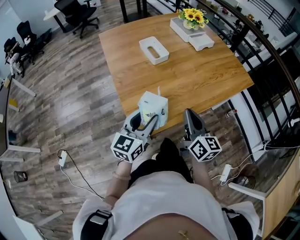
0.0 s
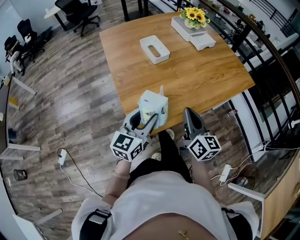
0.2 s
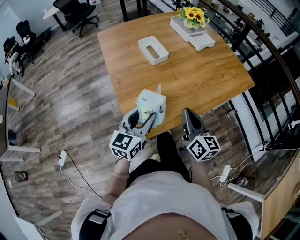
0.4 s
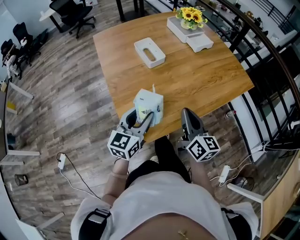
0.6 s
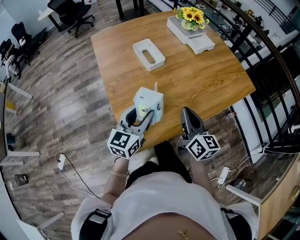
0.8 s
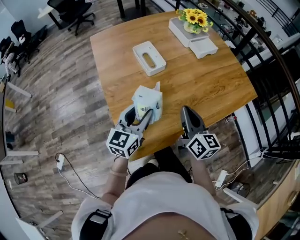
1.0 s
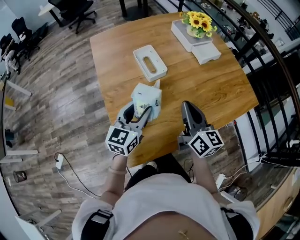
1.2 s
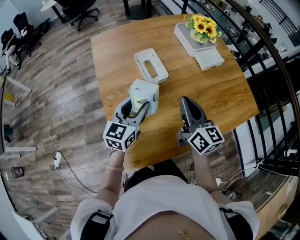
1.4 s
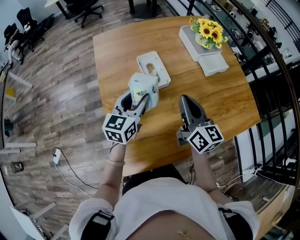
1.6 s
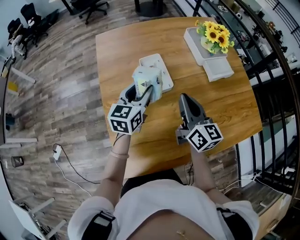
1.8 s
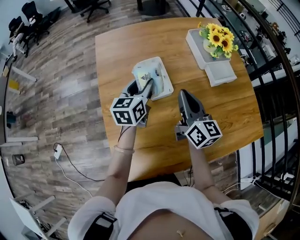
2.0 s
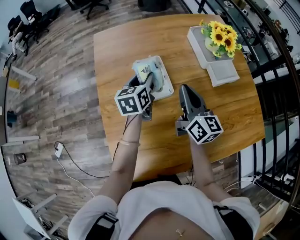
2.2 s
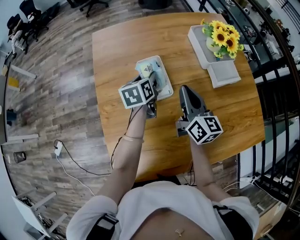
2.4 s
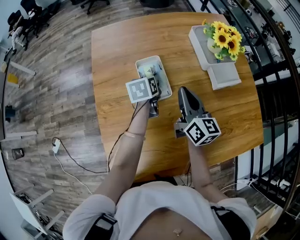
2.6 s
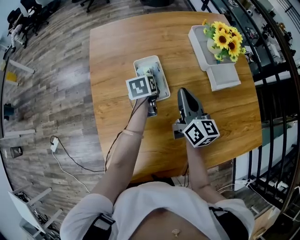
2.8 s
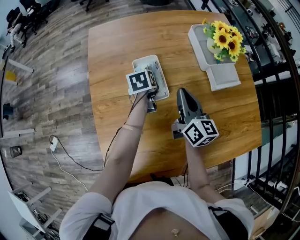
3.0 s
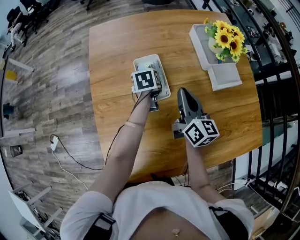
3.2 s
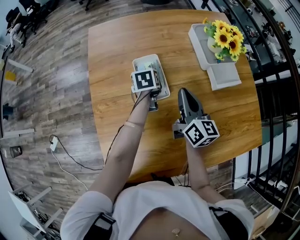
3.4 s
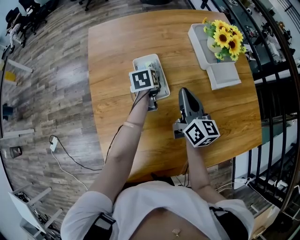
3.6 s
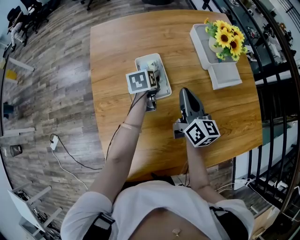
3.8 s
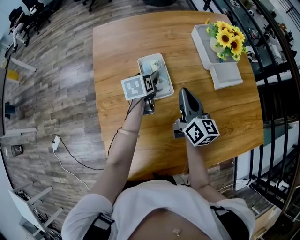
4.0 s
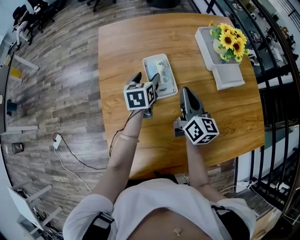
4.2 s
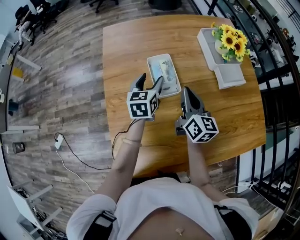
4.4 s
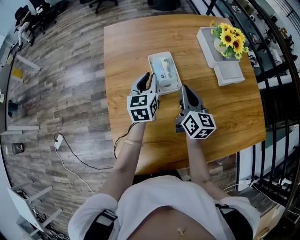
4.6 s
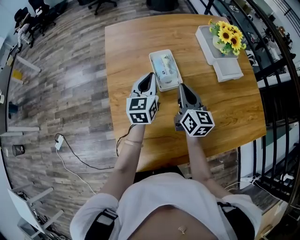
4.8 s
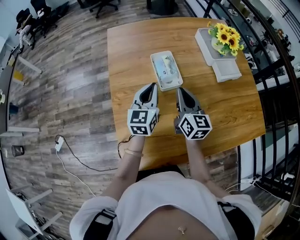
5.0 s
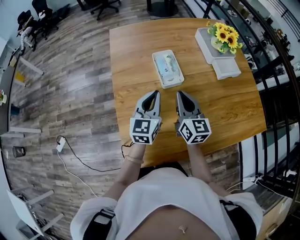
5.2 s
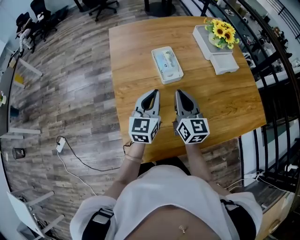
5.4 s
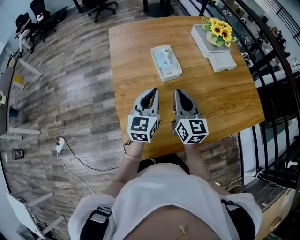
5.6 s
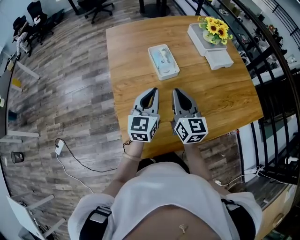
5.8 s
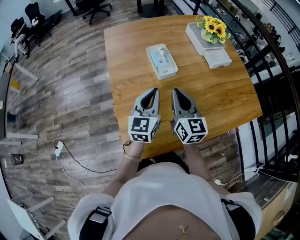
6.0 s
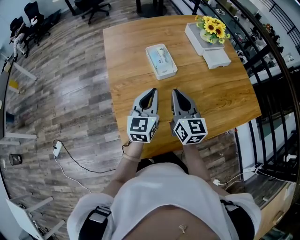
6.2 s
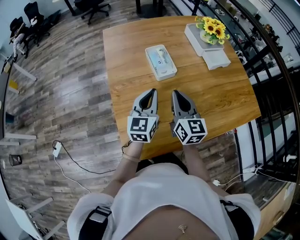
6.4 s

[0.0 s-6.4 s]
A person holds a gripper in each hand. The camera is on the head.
0.0 to 1.6 s: The grippers both shift forward by roughly 25 cm.
1.6 to 3.2 s: The left gripper shifts roughly 25 cm forward and downward, and tips its fingers downward by approximately 40 degrees; the right gripper moves forward and downward, approximately 15 cm.
3.2 to 4.8 s: The left gripper is displaced upward and backward by roughly 15 cm, angles its fingers upward, by approximately 40 degrees, and closes up. Meanwhile the right gripper moves to the left, approximately 5 cm.
4.8 to 6.4 s: Both grippers move backward, approximately 15 cm.

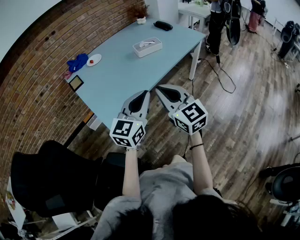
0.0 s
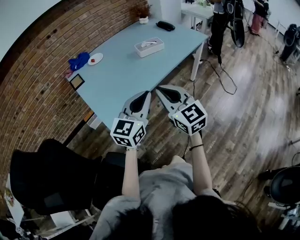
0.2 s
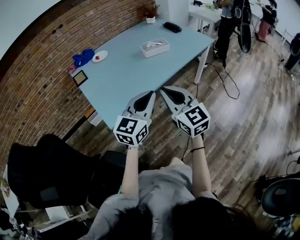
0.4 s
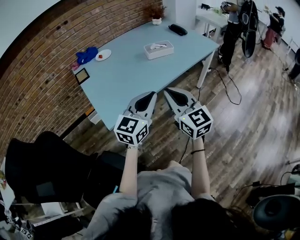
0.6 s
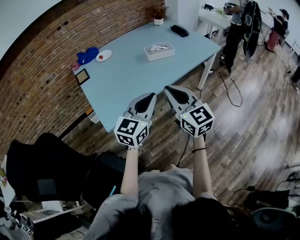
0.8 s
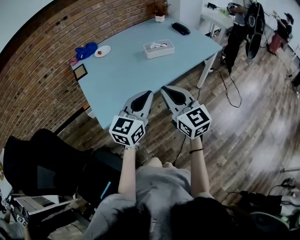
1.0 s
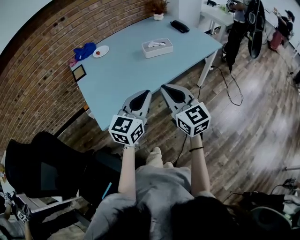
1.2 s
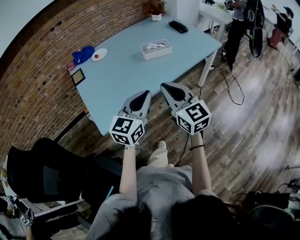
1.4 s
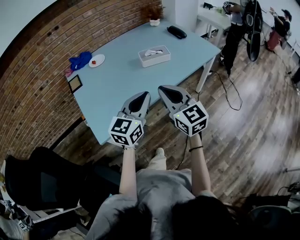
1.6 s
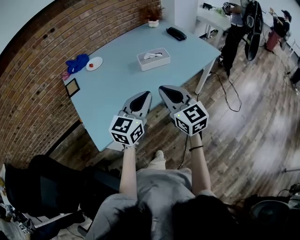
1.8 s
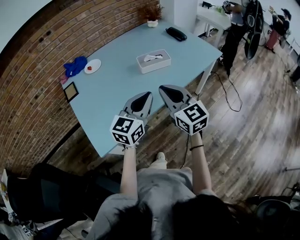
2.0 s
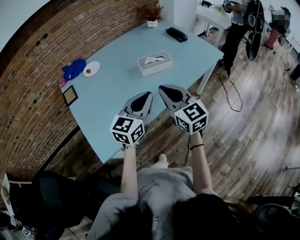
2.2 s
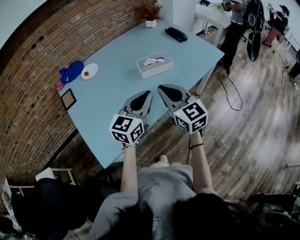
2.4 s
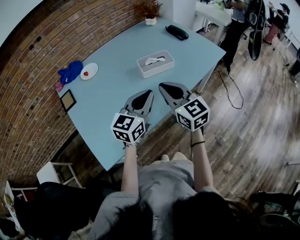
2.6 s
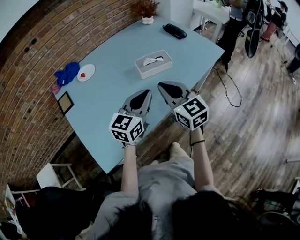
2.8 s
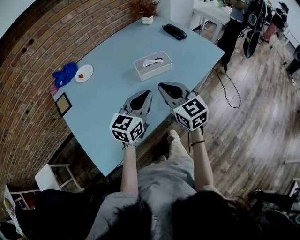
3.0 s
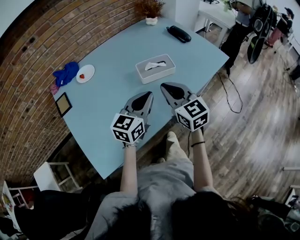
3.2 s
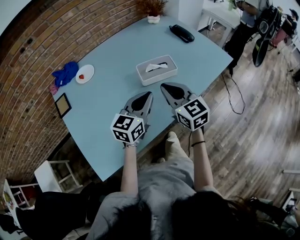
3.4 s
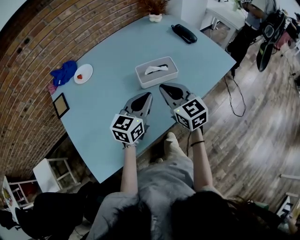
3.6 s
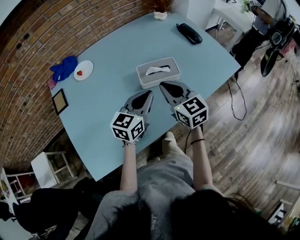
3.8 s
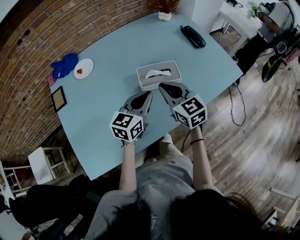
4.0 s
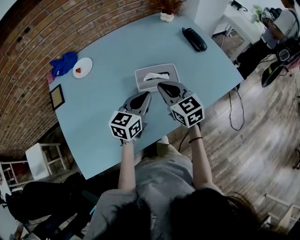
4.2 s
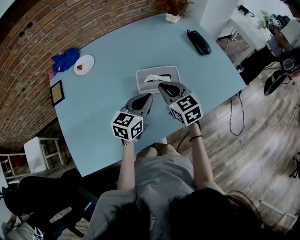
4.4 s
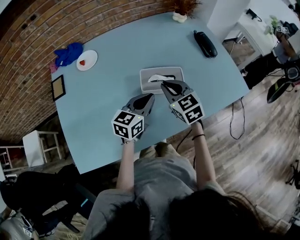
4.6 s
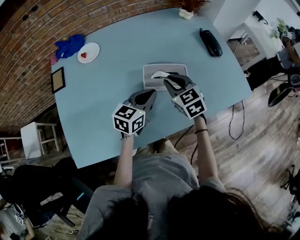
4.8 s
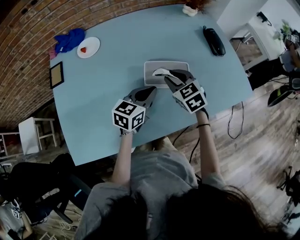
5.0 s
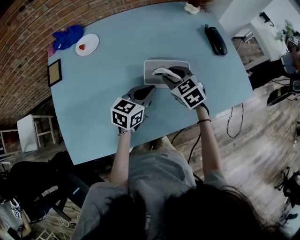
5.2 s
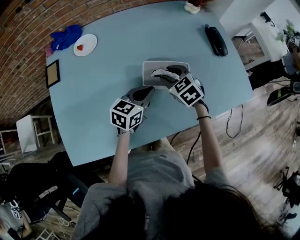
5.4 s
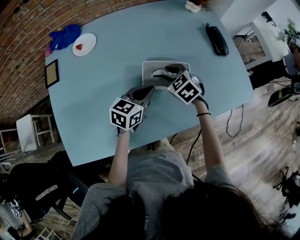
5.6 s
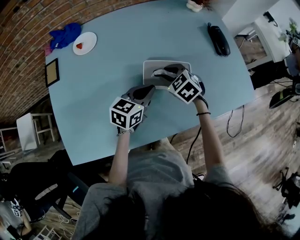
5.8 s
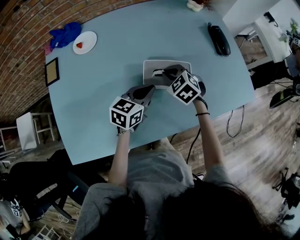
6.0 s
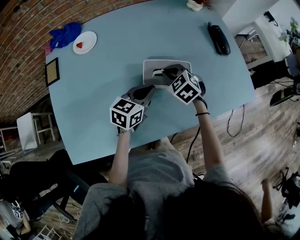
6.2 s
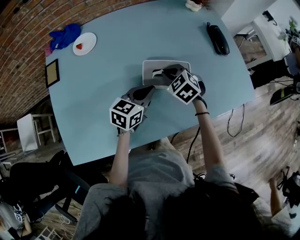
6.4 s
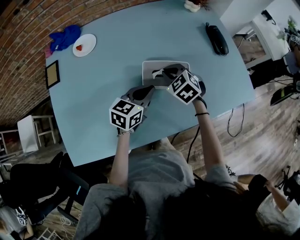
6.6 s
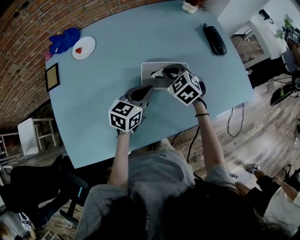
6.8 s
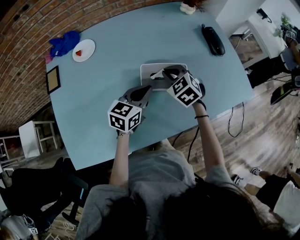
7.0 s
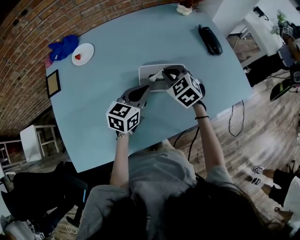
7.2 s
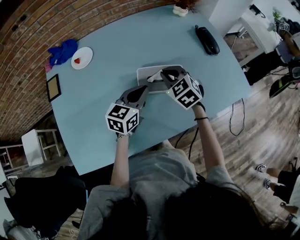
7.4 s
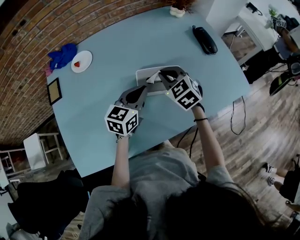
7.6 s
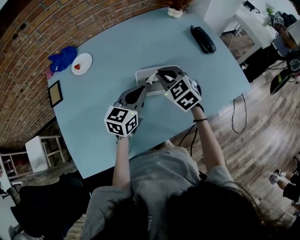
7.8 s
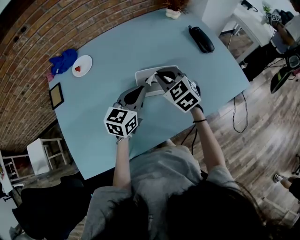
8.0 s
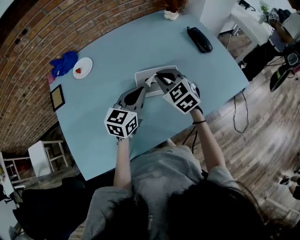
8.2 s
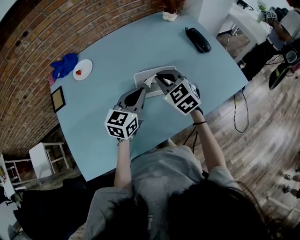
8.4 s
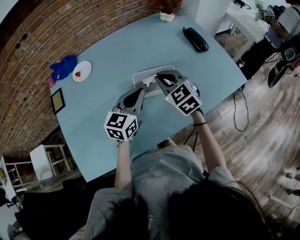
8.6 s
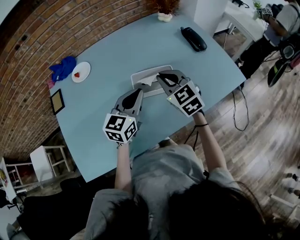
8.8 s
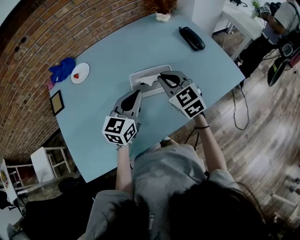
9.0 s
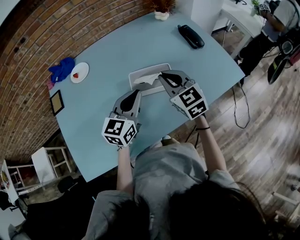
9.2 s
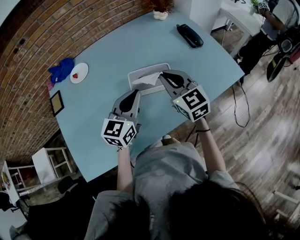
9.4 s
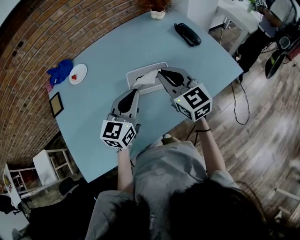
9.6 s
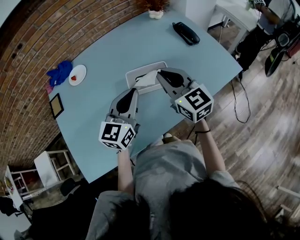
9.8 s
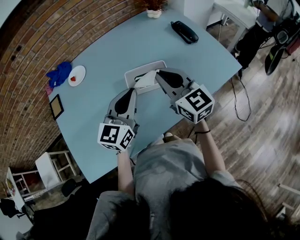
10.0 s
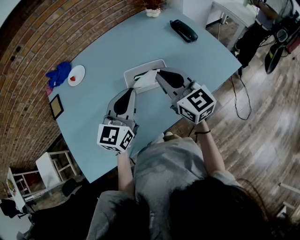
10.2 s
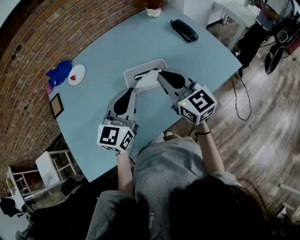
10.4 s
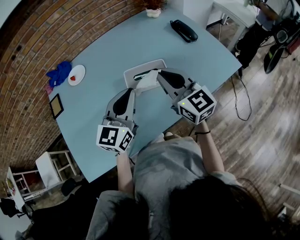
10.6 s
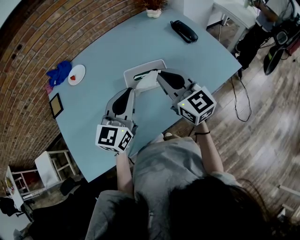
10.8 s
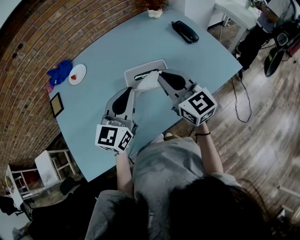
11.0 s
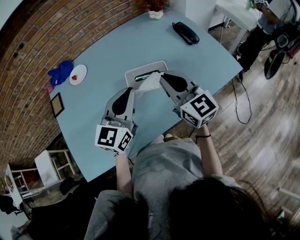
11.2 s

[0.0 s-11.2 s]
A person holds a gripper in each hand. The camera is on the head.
0.0 to 1.6 s: Both grippers move forward and to the right, about 15 cm.
1.6 to 3.2 s: The two grippers go about 25 cm forward.
3.2 to 4.8 s: Both grippers travel together forward and downward, about 20 cm. The right gripper turns by some 30 degrees.
4.8 to 6.4 s: The right gripper heads downward, covering approximately 5 cm, turns by roughly 20 degrees, and opens and closes again.
6.4 to 8.0 s: The two grippers go approximately 10 cm upward. The right gripper changes its angle by some 20 degrees.
8.0 to 9.6 s: The left gripper moves backward and upward, some 10 cm. The right gripper heads upward, backward and to the right, covering roughly 10 cm, and turns by some 30 degrees.
9.6 to 11.2 s: The grippers move only a little.

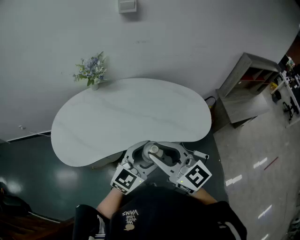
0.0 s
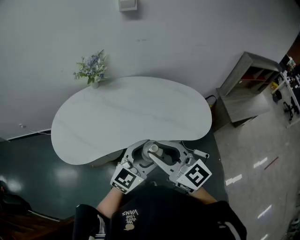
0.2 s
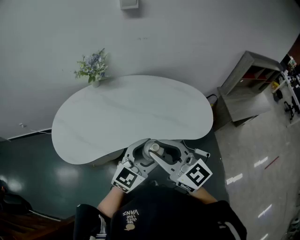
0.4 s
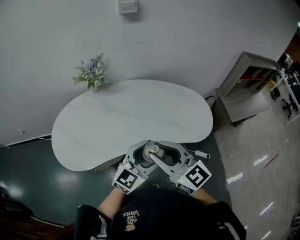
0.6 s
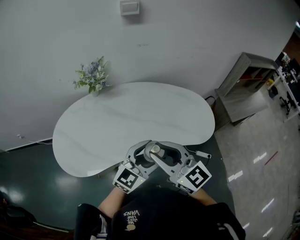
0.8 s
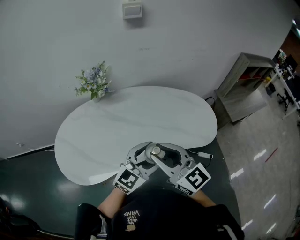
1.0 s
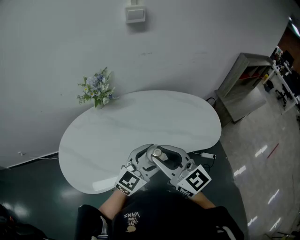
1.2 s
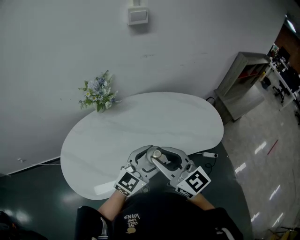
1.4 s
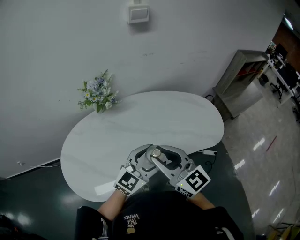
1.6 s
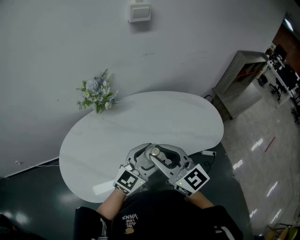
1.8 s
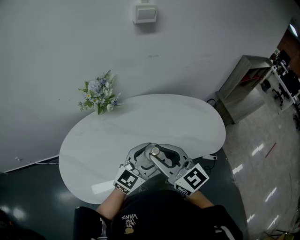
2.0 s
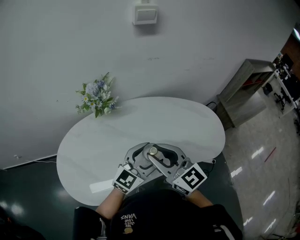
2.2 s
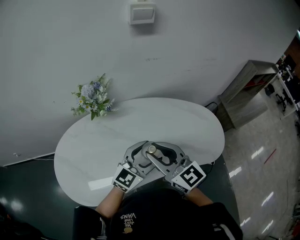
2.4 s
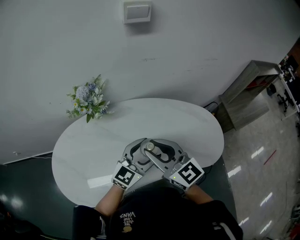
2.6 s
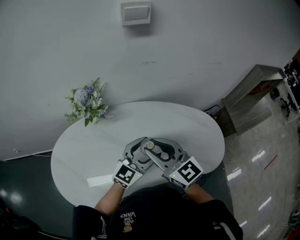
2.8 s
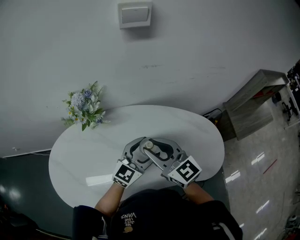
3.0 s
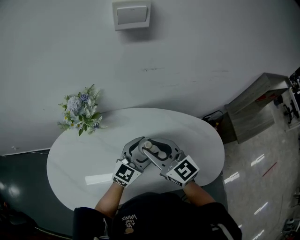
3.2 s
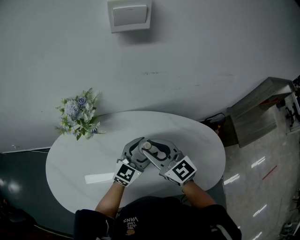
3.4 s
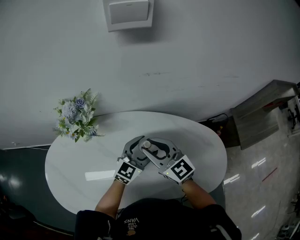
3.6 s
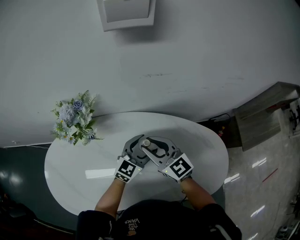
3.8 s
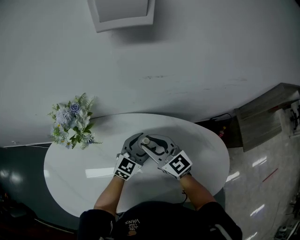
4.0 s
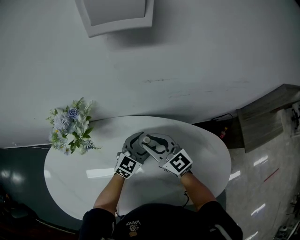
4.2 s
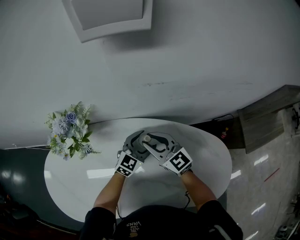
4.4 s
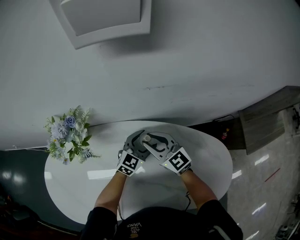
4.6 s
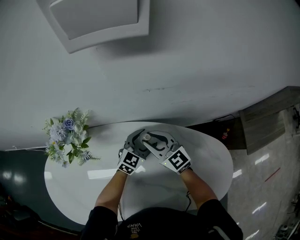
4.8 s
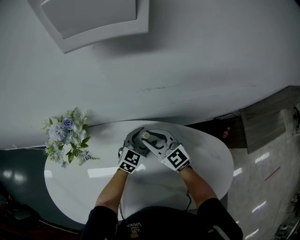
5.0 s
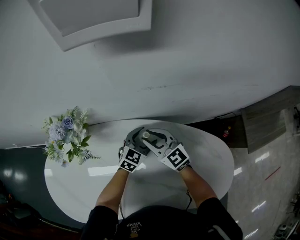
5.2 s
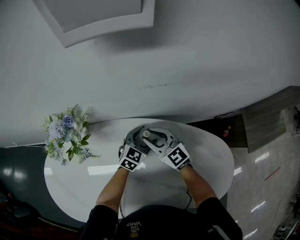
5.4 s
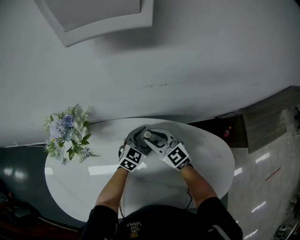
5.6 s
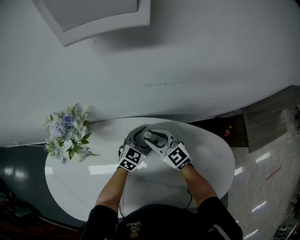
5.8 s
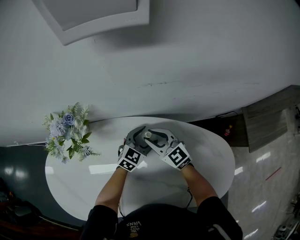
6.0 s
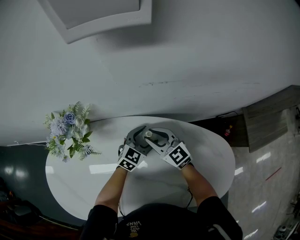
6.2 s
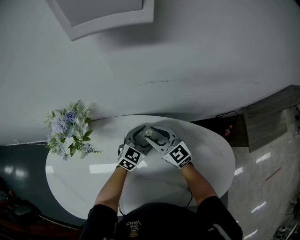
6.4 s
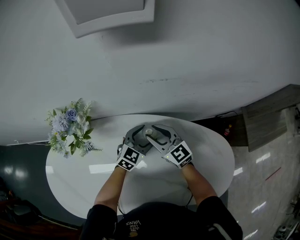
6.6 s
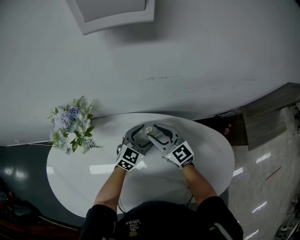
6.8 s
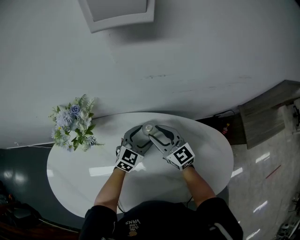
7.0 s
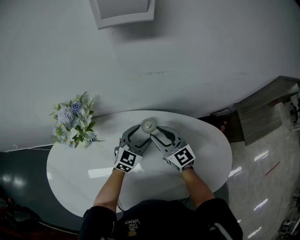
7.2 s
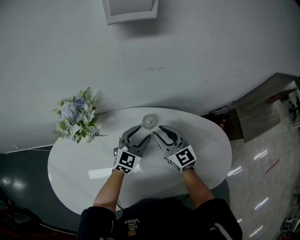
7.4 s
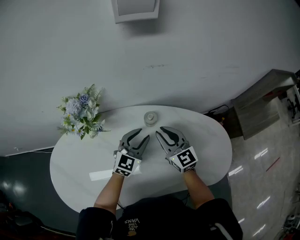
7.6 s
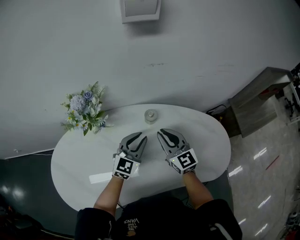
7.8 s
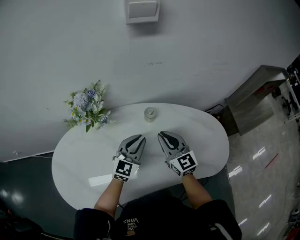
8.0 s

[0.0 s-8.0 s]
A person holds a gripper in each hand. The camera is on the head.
0.0 to 1.6 s: Both grippers move to the left and forward, approximately 20 cm.
1.6 to 3.2 s: Both grippers travel together forward, approximately 25 cm.
3.2 to 4.8 s: The grippers both shift forward and downward by some 25 cm.
4.8 to 6.4 s: The grippers make only small movements.
6.4 to 8.0 s: The left gripper travels backward, upward and to the left by some 25 cm, and closes up, while the right gripper heads backward and upward, covering roughly 20 cm, swivels about 30 degrees, and closes.
